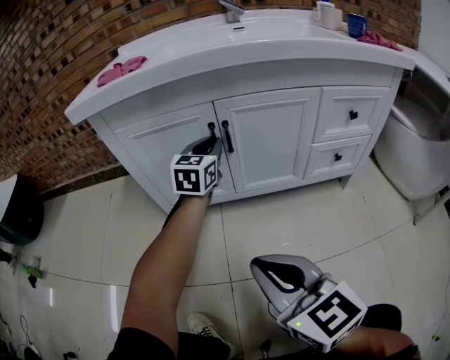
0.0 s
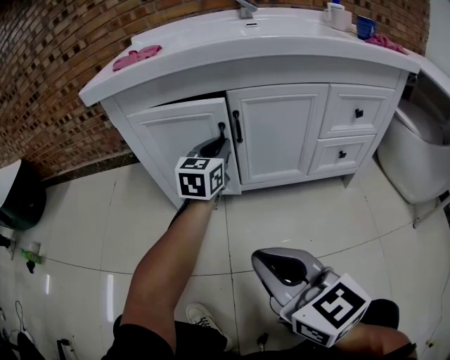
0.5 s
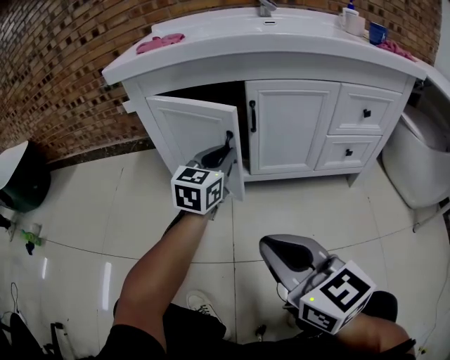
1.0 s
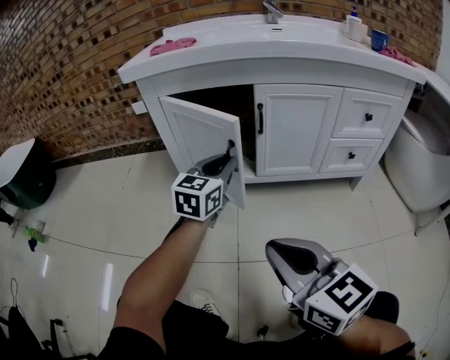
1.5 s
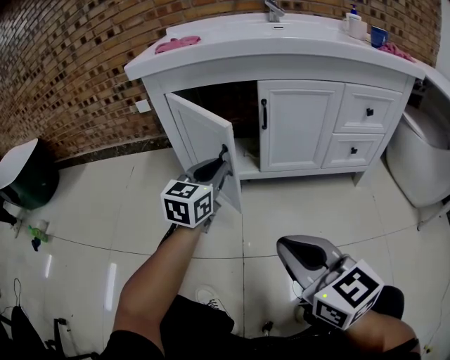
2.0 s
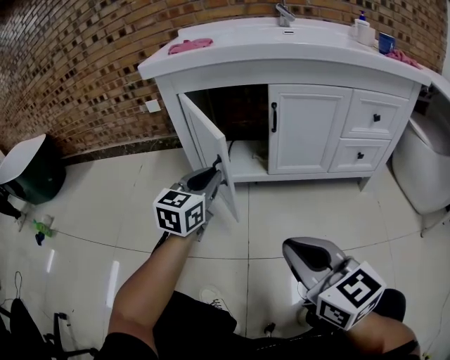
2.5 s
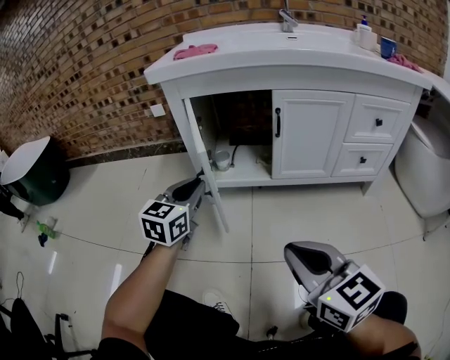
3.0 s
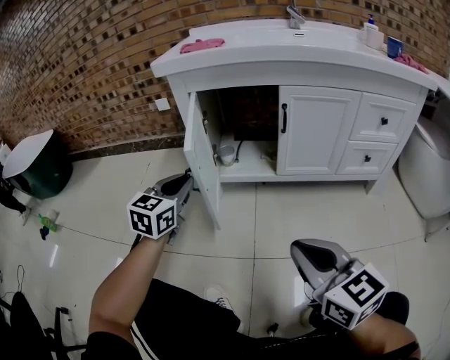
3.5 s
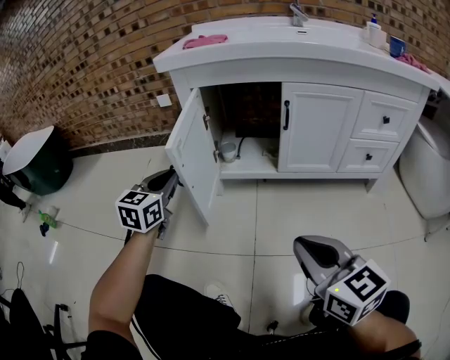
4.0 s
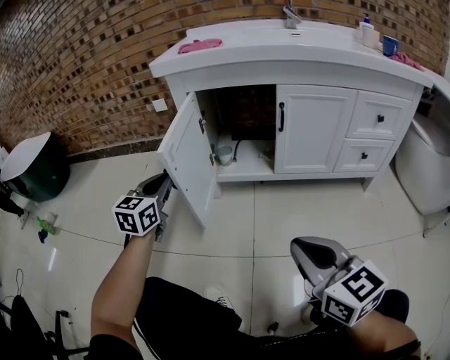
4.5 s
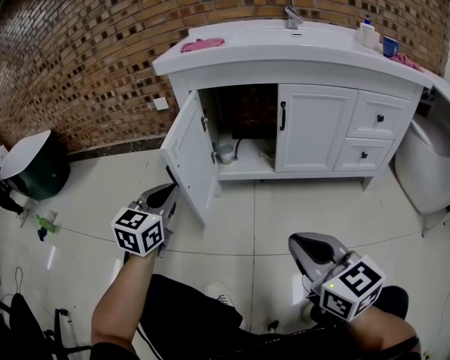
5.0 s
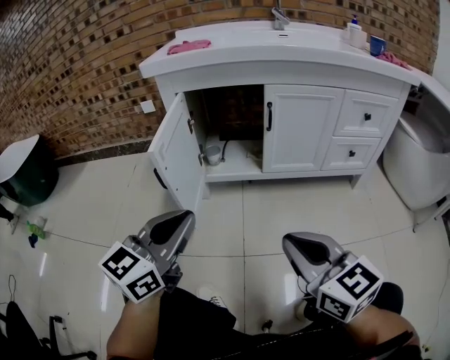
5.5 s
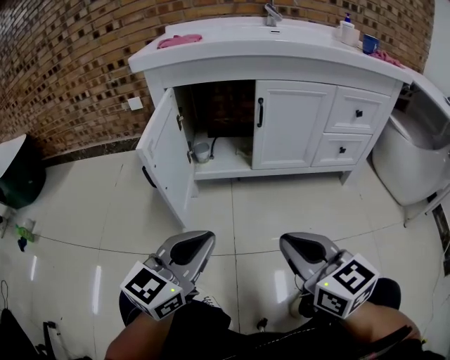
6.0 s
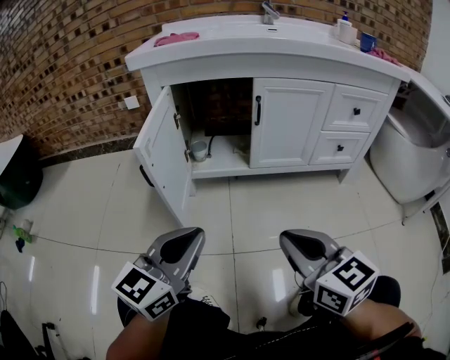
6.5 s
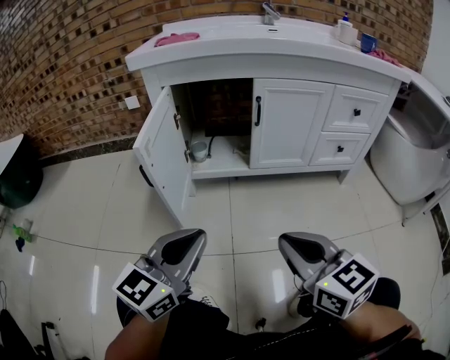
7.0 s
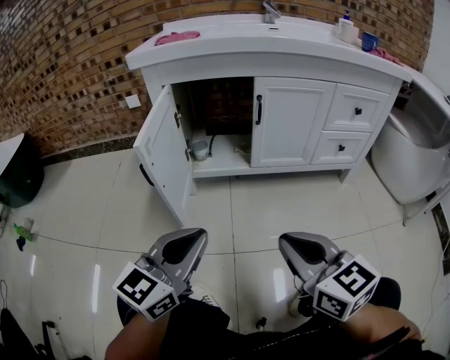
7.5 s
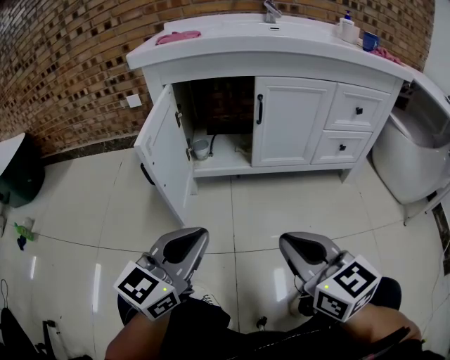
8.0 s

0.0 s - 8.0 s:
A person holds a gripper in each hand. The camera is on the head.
0.0 s - 2.0 s: The left gripper travels backward and to the left by some 20 cm; the right gripper goes approximately 5 cm backward.
2.0 s - 4.0 s: The left gripper heads to the left, covering approximately 20 cm.
4.0 s - 6.0 s: The left gripper is displaced backward and to the right by some 25 cm, and changes its angle by approximately 30 degrees.
6.0 s - 8.0 s: The grippers stay close to where they were, moving slightly.

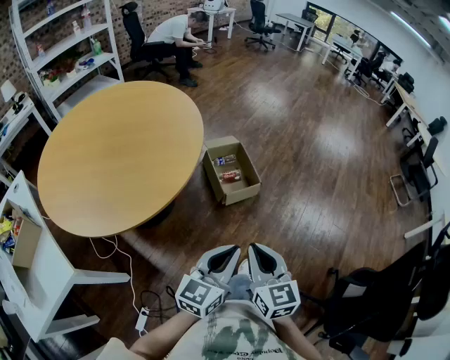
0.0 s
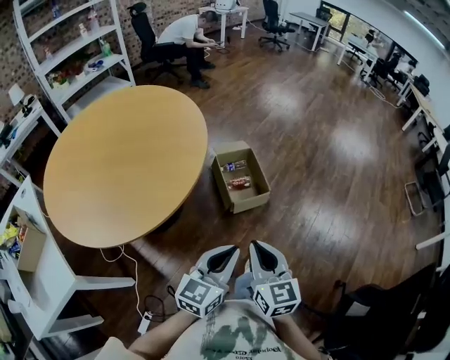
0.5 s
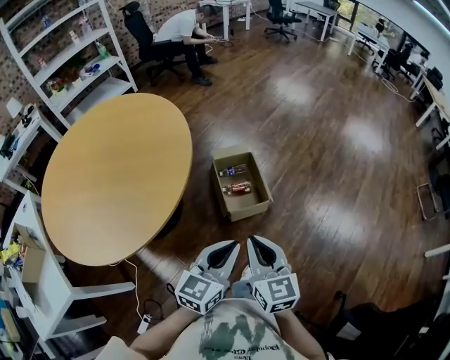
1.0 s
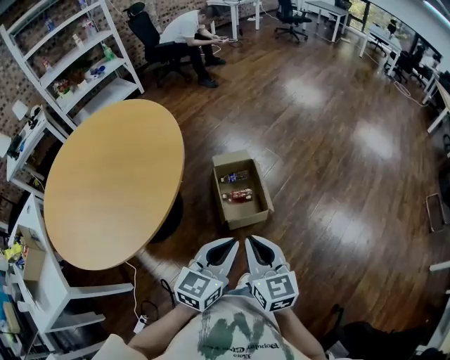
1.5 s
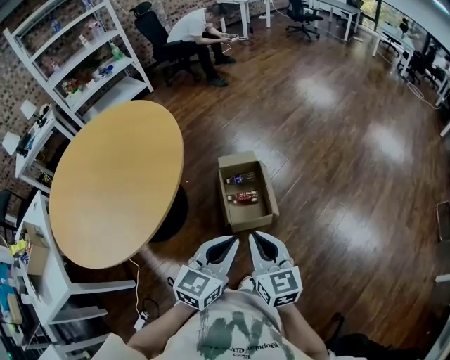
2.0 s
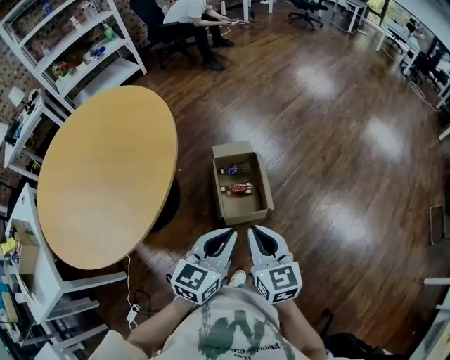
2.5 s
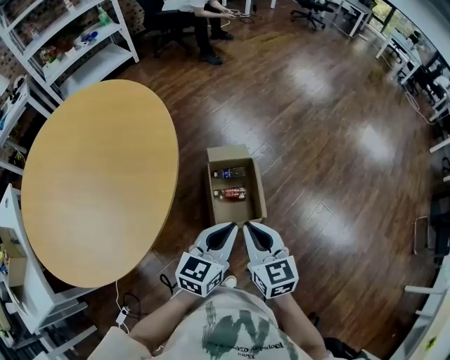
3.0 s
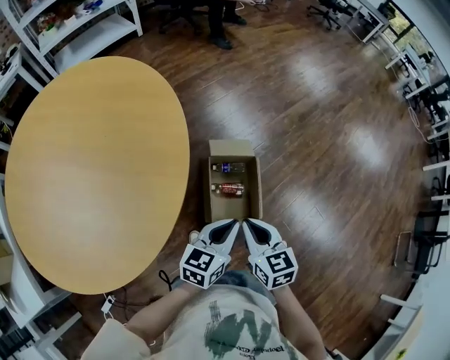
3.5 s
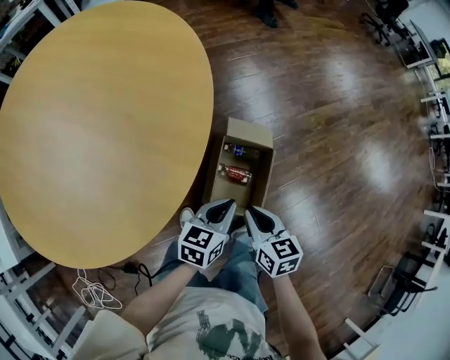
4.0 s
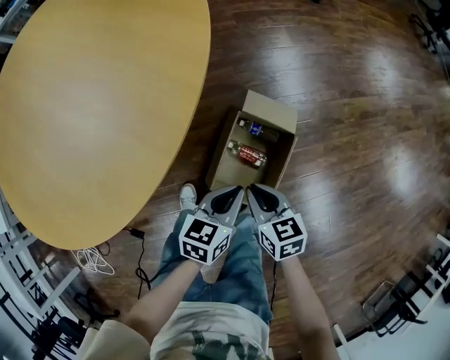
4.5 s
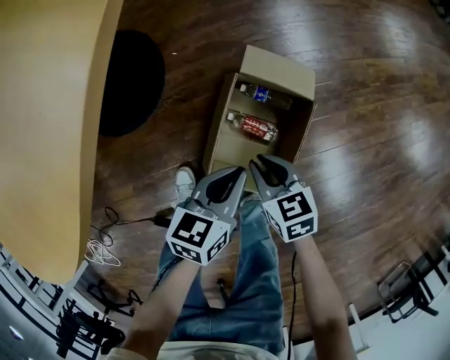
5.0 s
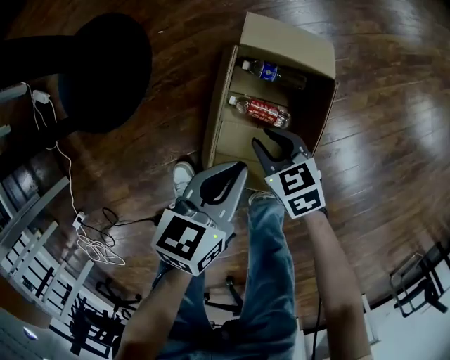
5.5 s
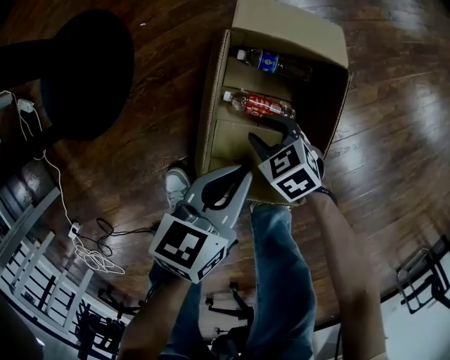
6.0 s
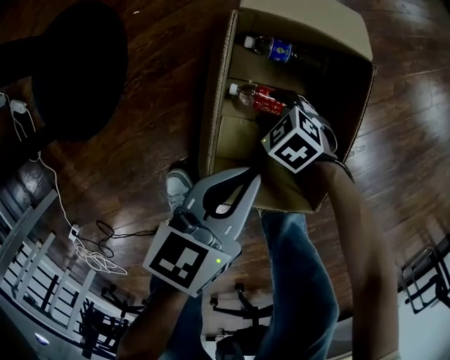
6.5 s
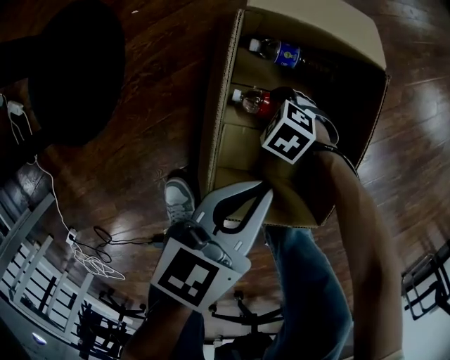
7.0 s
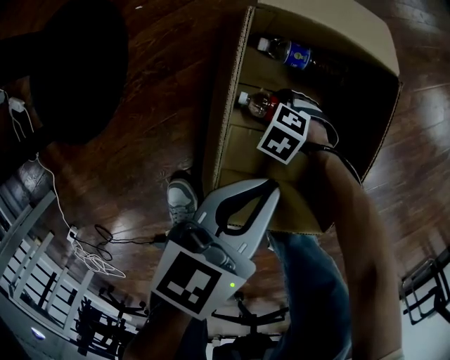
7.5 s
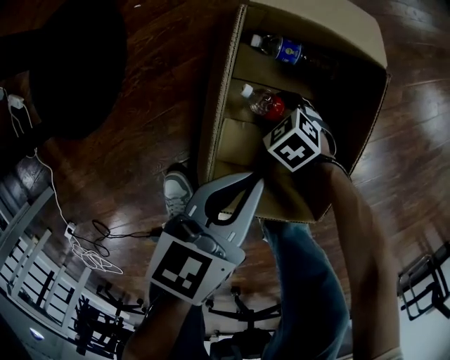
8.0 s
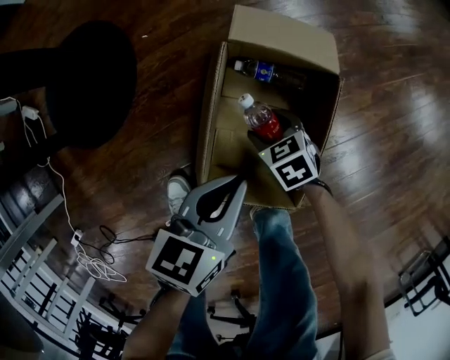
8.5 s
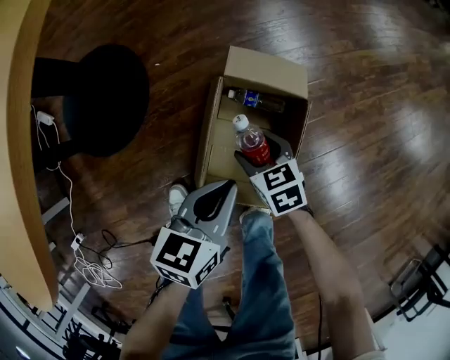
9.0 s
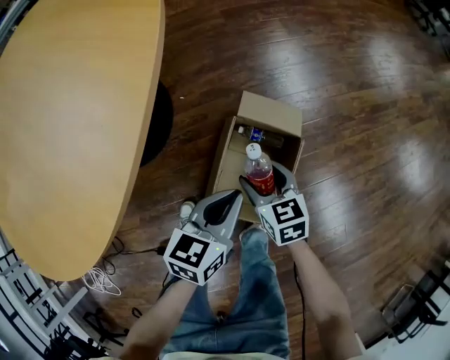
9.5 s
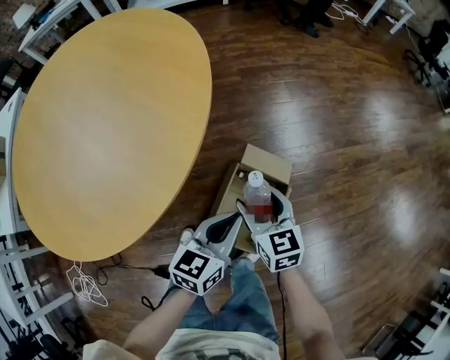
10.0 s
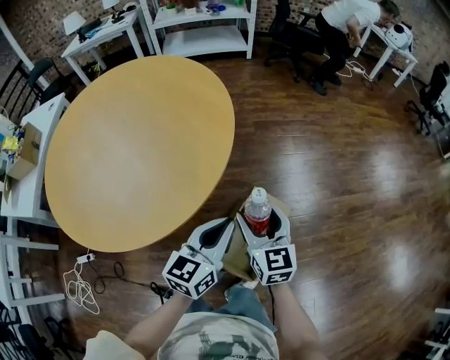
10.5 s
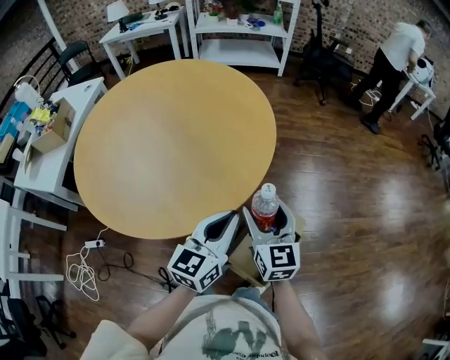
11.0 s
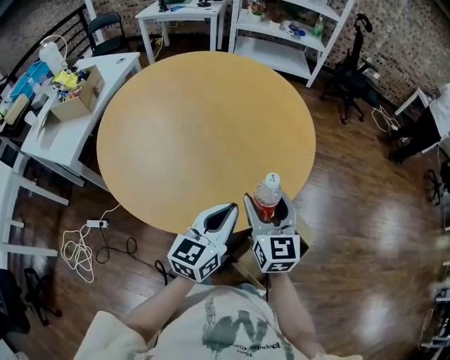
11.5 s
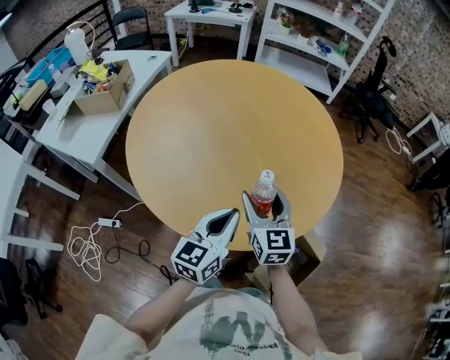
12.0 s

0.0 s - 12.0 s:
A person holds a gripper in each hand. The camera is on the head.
0.0 s - 2.0 s: Both grippers move forward and to the right, approximately 35 cm.
2.0 s - 4.0 s: The two grippers go approximately 35 cm forward and downward. The left gripper turns by roughly 40 degrees, while the right gripper swivels roughly 40 degrees.
4.0 s - 6.0 s: Both grippers travel together downward, about 40 cm. The right gripper swivels roughly 40 degrees, and opens up.
6.0 s - 8.0 s: The right gripper is displaced downward by roughly 15 cm, and opens.
8.0 s - 10.0 s: The grippers both shift upward by approximately 50 cm. The left gripper changes its angle by roughly 20 degrees, while the right gripper tips its fingers upward by roughly 40 degrees.
10.0 s - 12.0 s: The two grippers travel together, to the left, roughly 40 cm. Both grippers move upward, some 20 cm. The left gripper changes its angle by approximately 40 degrees. The right gripper changes its angle by some 30 degrees.

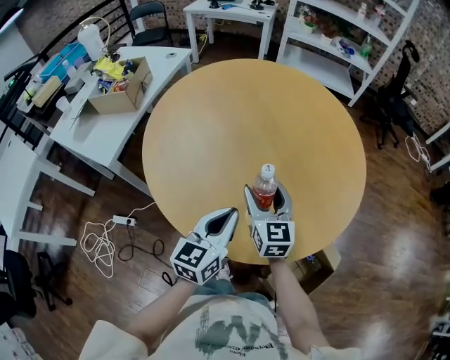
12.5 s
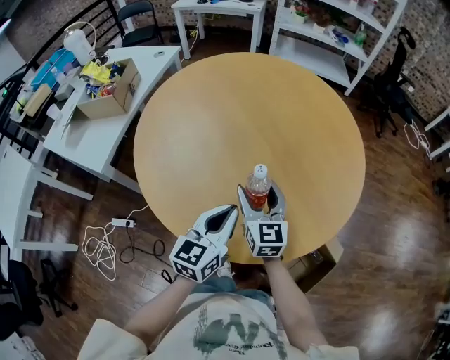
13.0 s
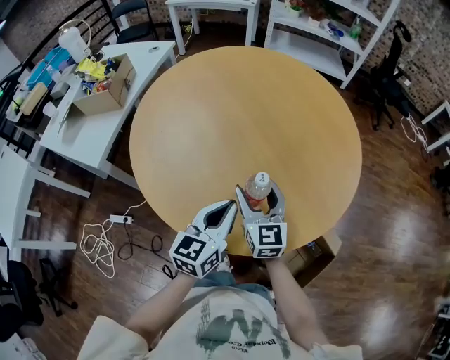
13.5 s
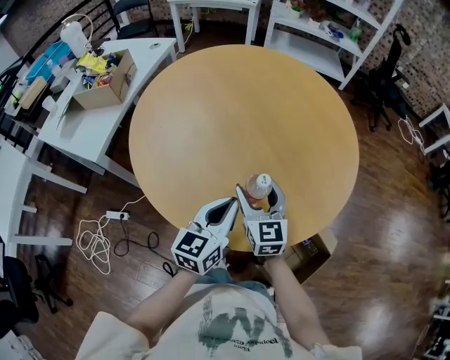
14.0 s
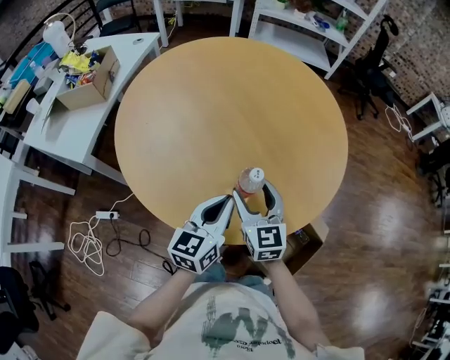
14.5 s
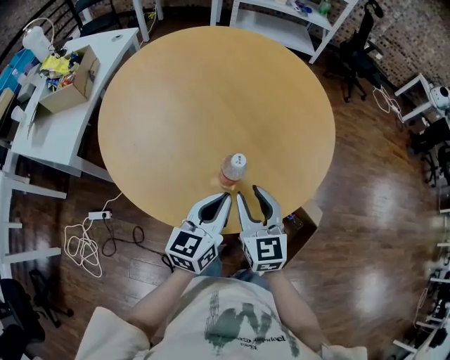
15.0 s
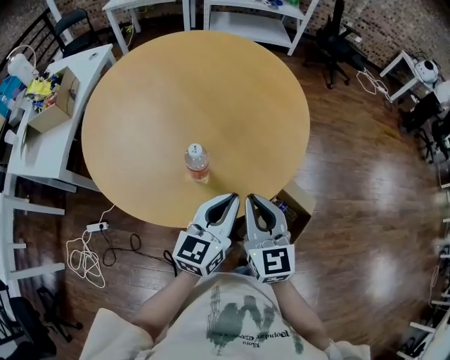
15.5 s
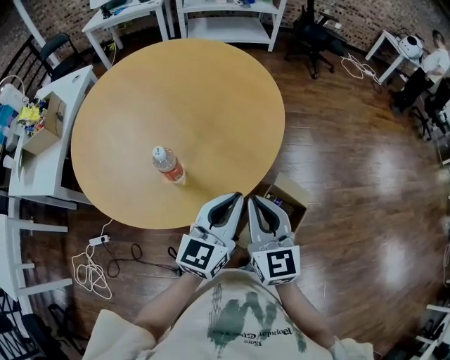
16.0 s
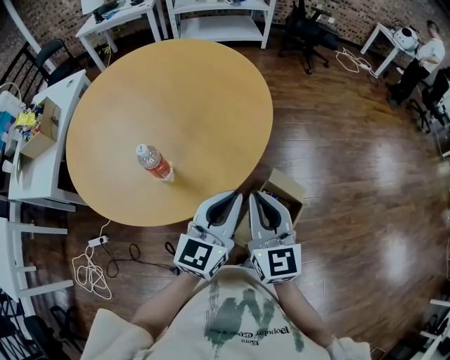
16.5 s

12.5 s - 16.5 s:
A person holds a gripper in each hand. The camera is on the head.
12.5 s - 14.5 s: The right gripper moves backward, some 5 cm.
14.5 s - 16.5 s: The left gripper shifts roughly 25 cm to the right, and rotates roughly 20 degrees. The right gripper moves to the right, backward and upward, approximately 30 cm, and closes.

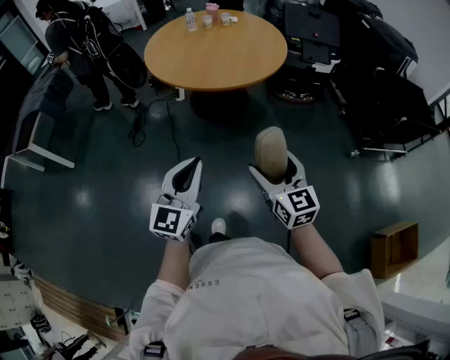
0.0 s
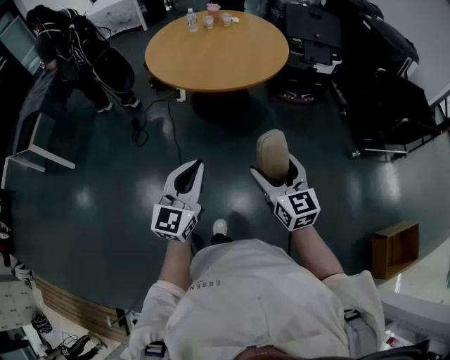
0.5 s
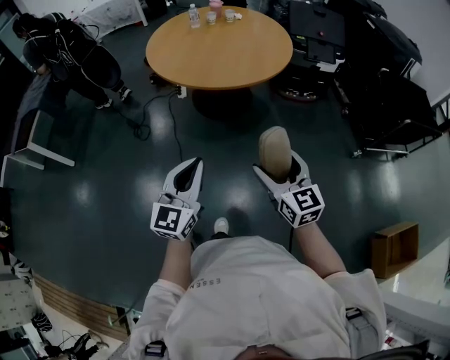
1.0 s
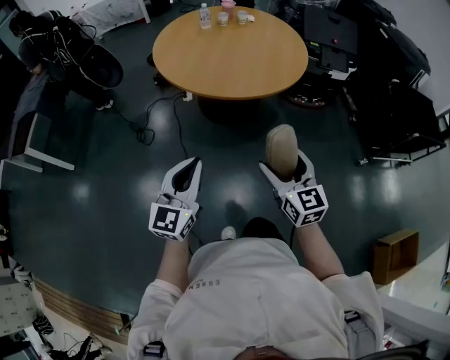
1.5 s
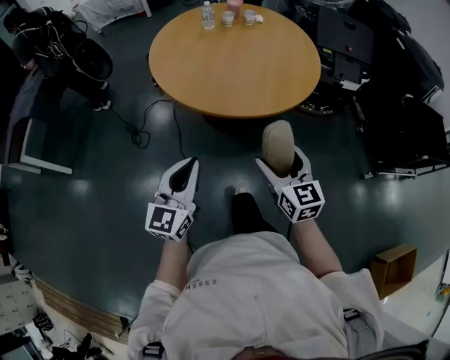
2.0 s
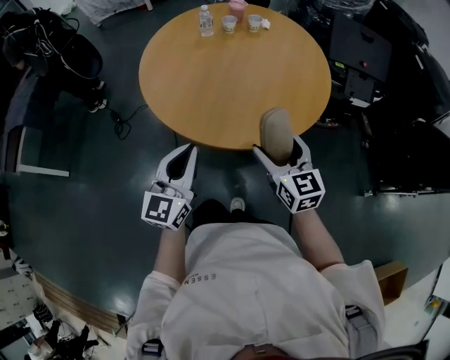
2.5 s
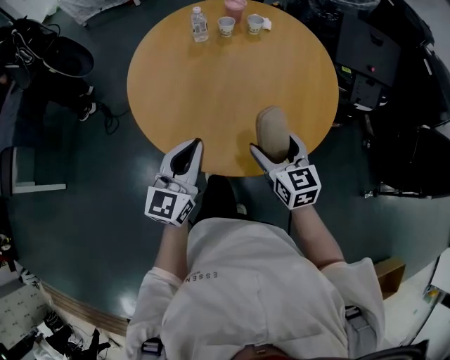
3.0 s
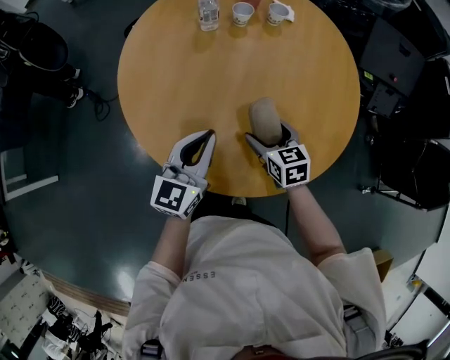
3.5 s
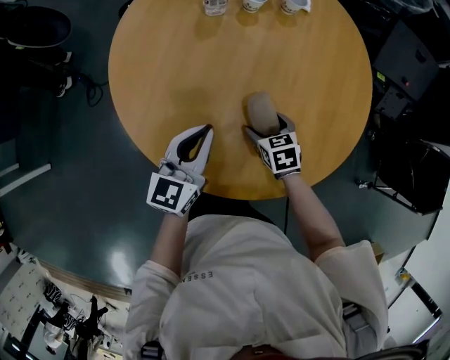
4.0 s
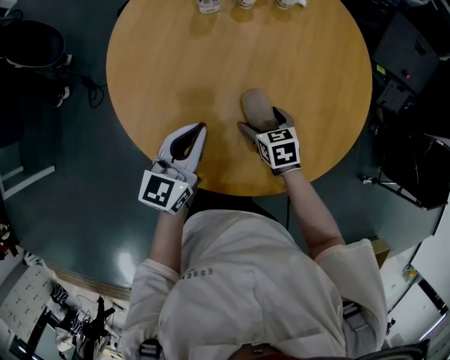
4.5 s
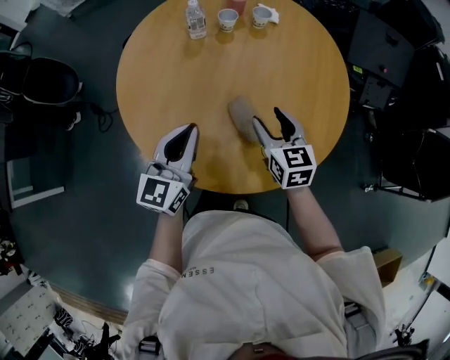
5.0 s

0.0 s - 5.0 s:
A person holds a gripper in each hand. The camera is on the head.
0.0 s - 2.5 s: Both grippers are carried forward, roughly 50 cm.
2.5 s - 5.0 s: Both grippers move forward, approximately 25 cm.
